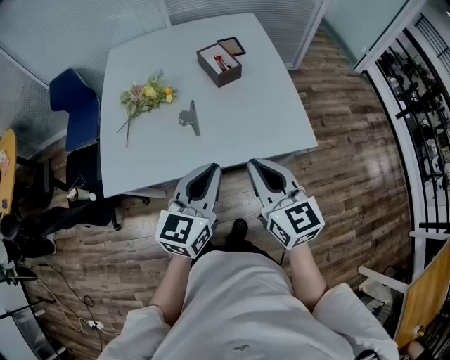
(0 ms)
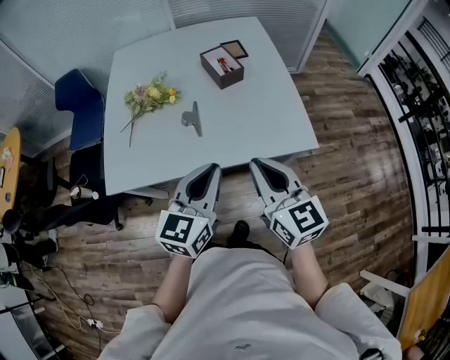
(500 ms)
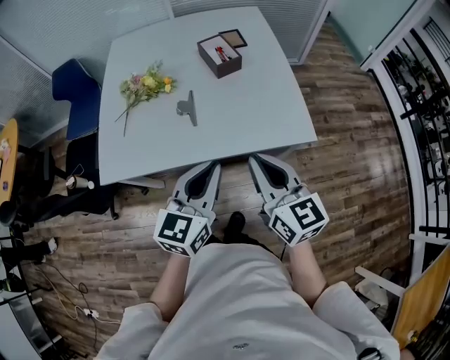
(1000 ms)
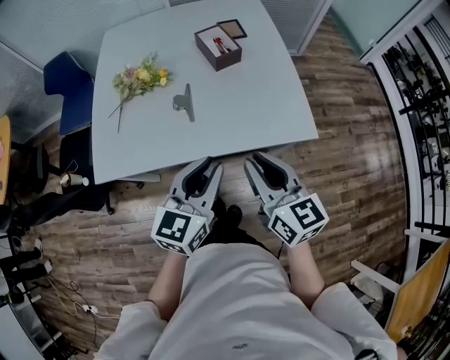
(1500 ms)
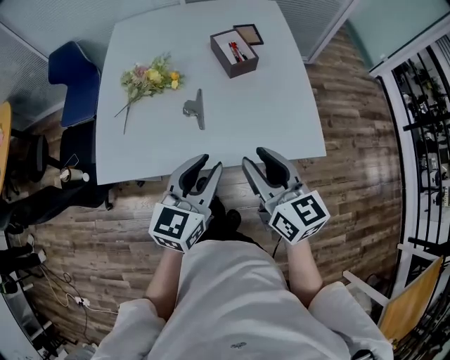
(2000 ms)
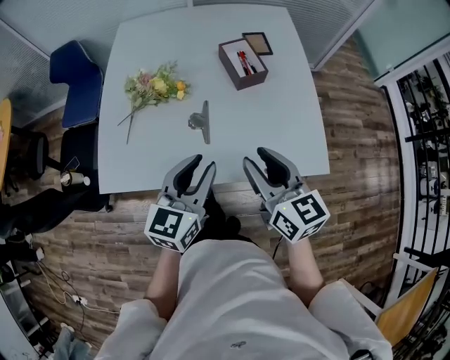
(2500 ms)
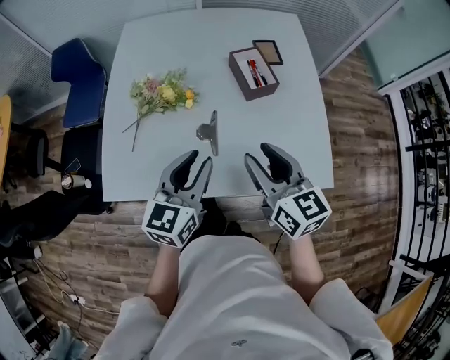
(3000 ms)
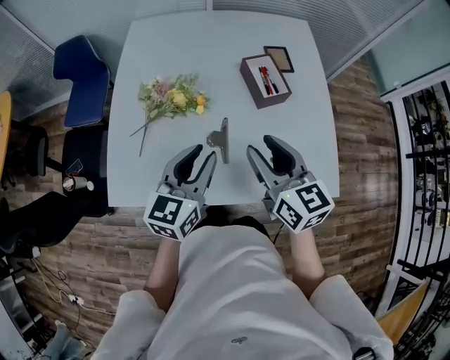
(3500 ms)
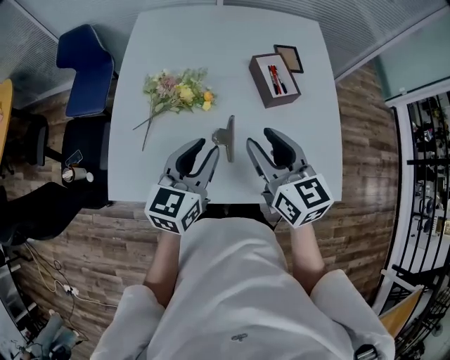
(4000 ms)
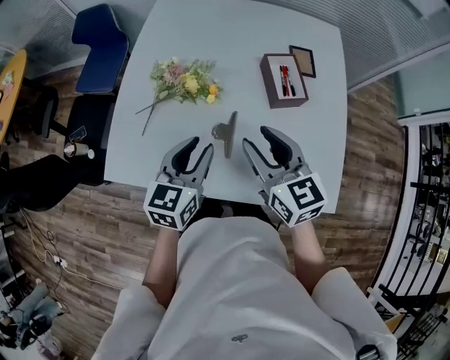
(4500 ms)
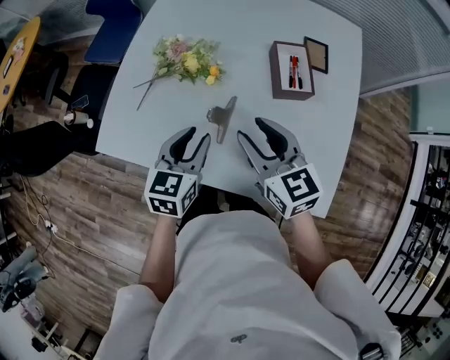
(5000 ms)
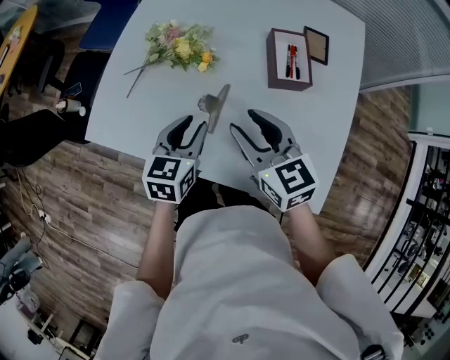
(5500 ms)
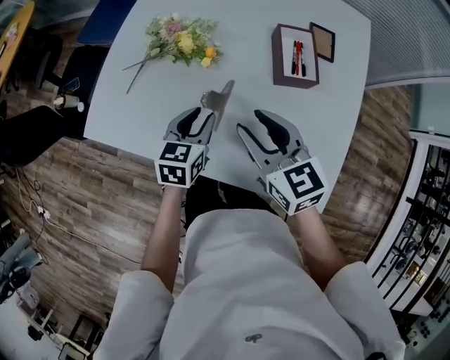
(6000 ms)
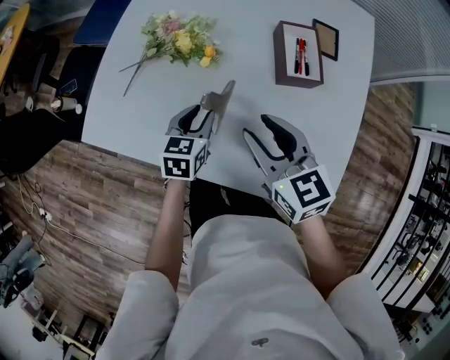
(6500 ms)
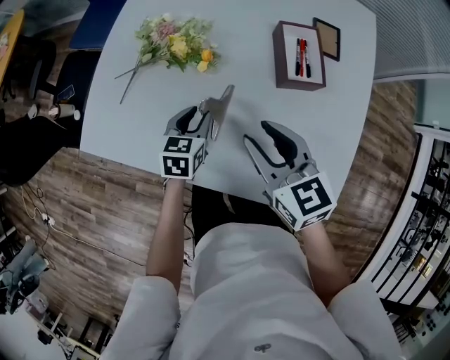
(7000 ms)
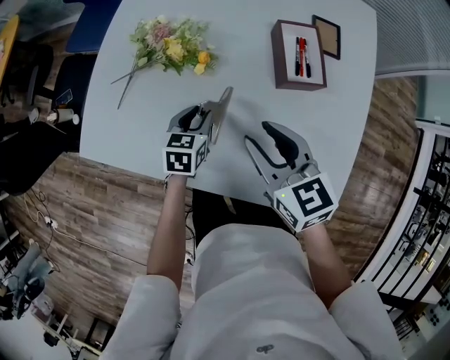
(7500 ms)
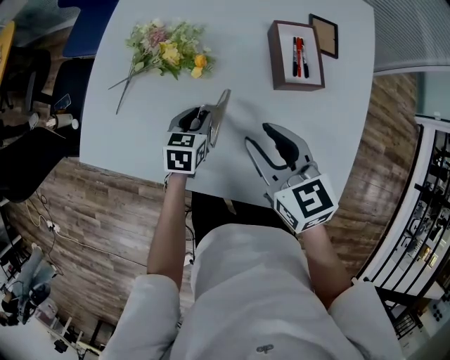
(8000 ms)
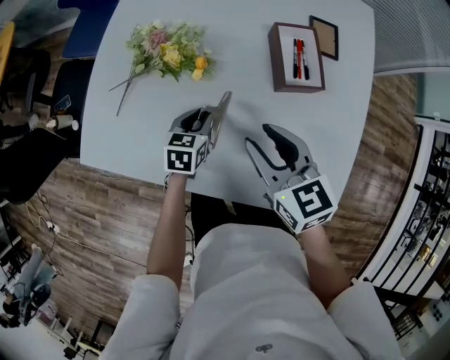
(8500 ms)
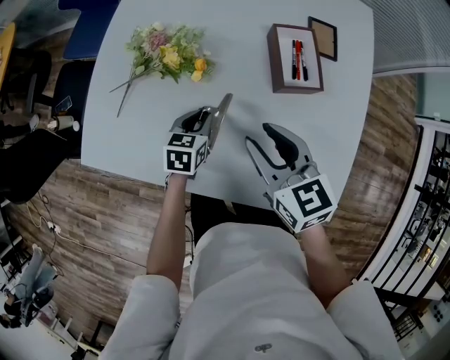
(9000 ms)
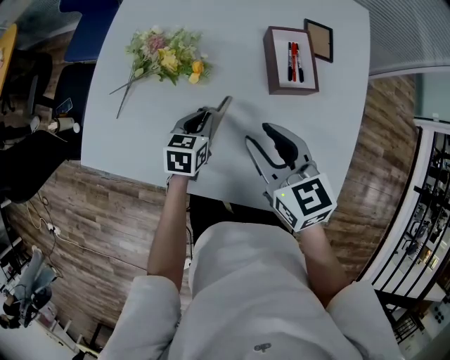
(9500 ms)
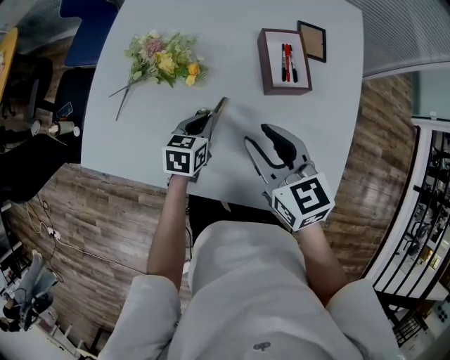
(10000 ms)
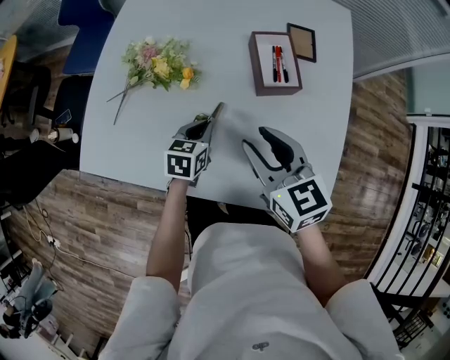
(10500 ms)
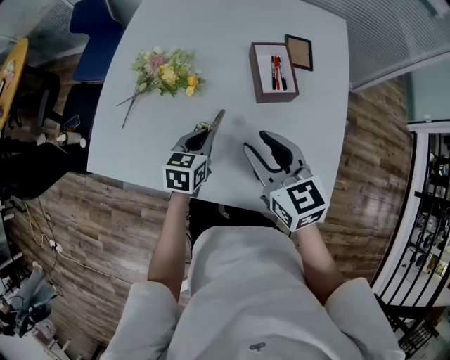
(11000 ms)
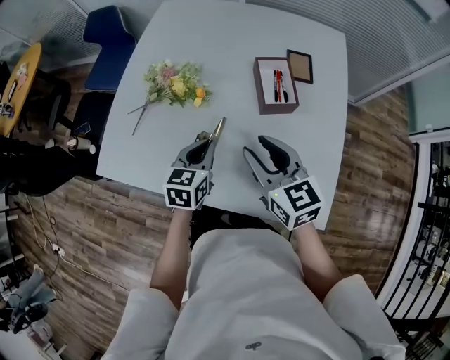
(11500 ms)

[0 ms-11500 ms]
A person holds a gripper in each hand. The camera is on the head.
0 ms to 2000 ms: The right gripper heads forward, covering approximately 5 cm, and opens its fingers. The left gripper ends up roughly 5 cm from where it was, and opens its fingers.
2000 ms to 4000 ms: The grippers both shift forward and to the left by some 20 cm.
4000 ms to 6000 ms: The left gripper moves downward, some 15 cm, and rotates roughly 30 degrees; the right gripper travels downward by some 5 cm, and turns by approximately 30 degrees.
6000 ms to 7500 ms: The left gripper goes some 10 cm downward and forward.
7500 ms to 9500 ms: There are only small adjustments of the grippers.
9500 ms to 11500 ms: The right gripper changes place by about 5 cm, while the left gripper travels upward and backward by about 15 cm.

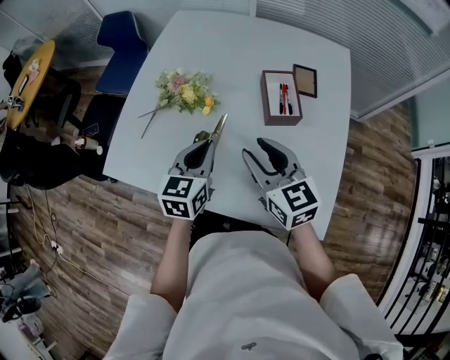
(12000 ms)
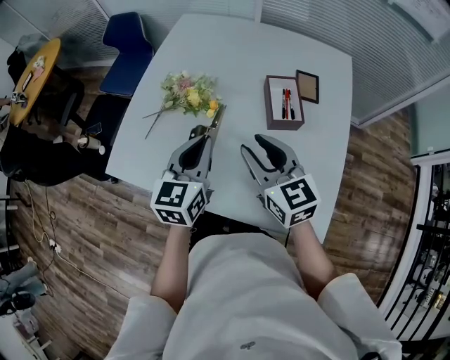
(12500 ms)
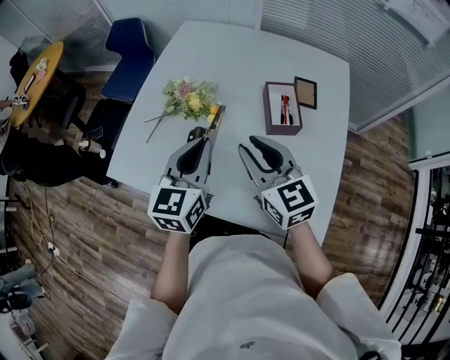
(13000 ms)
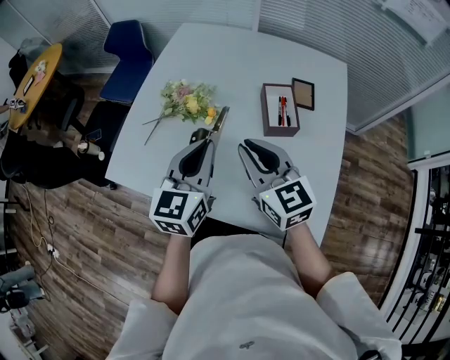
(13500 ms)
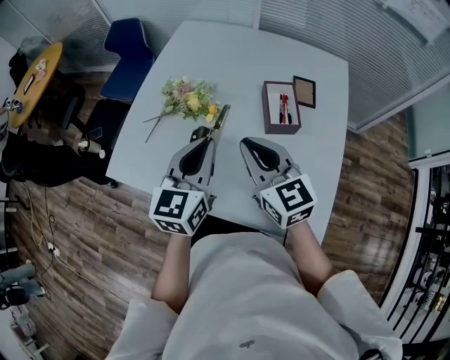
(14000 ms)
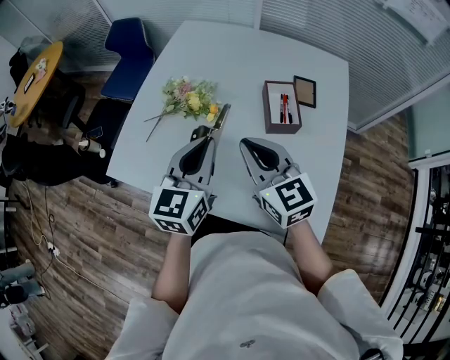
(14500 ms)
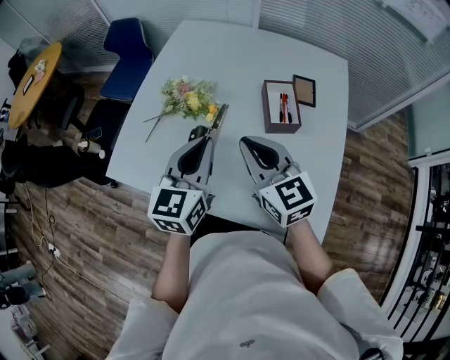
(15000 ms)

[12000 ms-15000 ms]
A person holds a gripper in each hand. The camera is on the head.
12000 ms to 13500 ms: The left gripper is displaced upward by approximately 10 cm, while the right gripper shifts by roughly 5 cm, and closes its fingers.
13500 ms to 15000 ms: The two grippers keep their place.

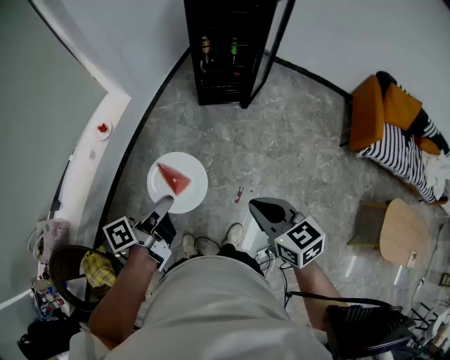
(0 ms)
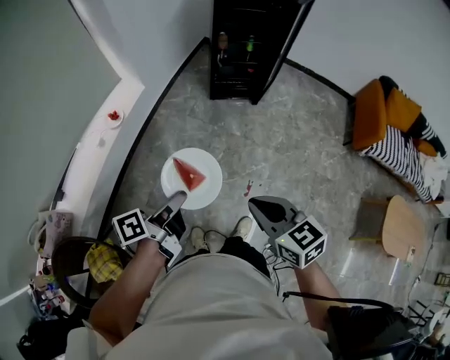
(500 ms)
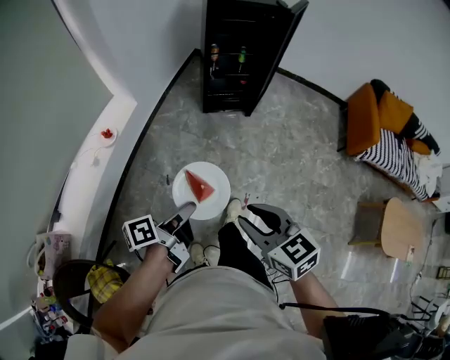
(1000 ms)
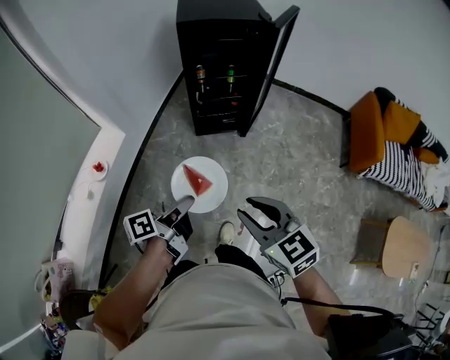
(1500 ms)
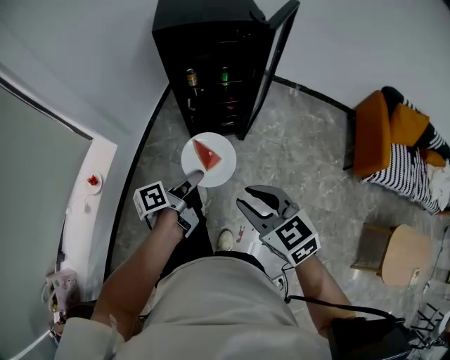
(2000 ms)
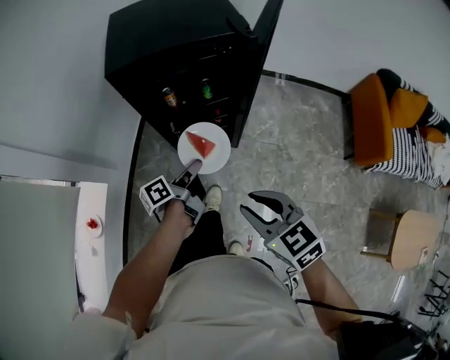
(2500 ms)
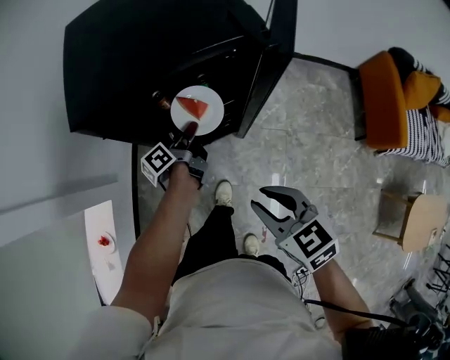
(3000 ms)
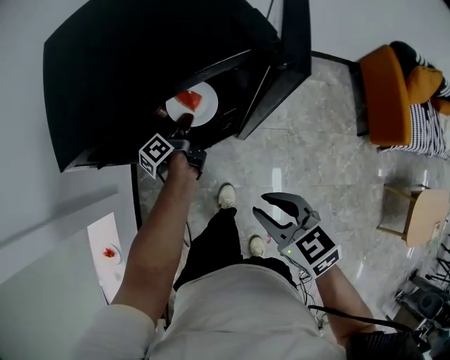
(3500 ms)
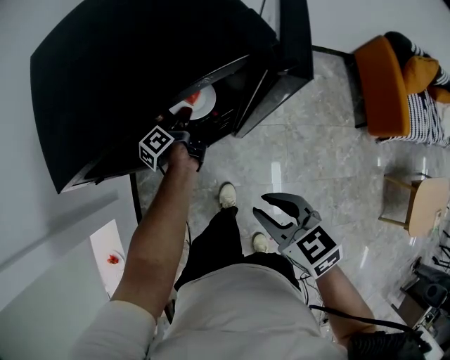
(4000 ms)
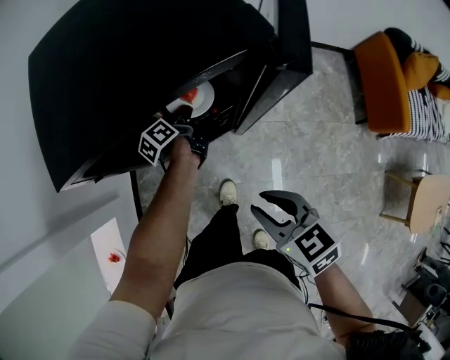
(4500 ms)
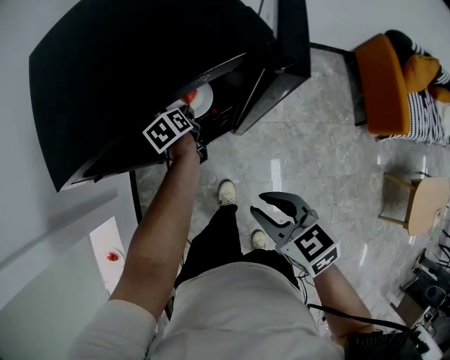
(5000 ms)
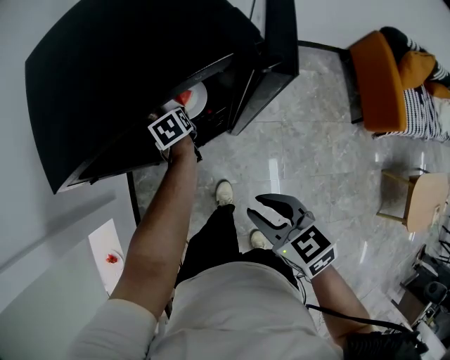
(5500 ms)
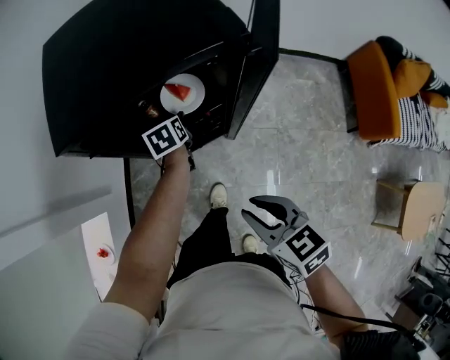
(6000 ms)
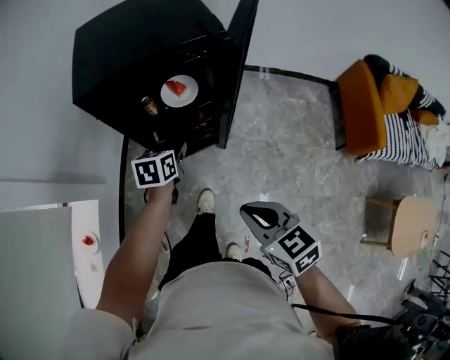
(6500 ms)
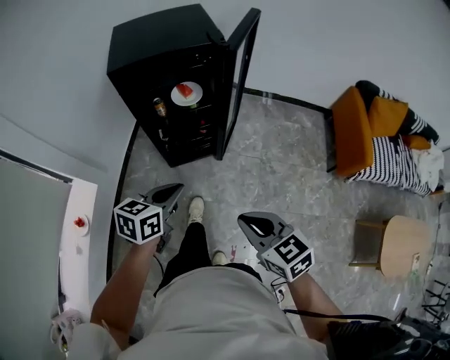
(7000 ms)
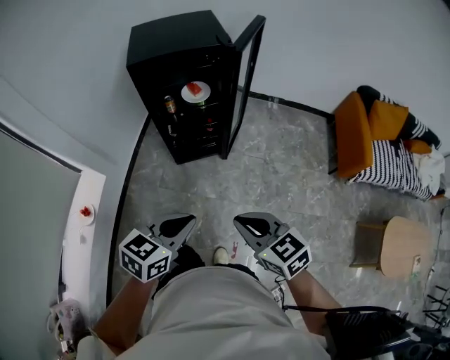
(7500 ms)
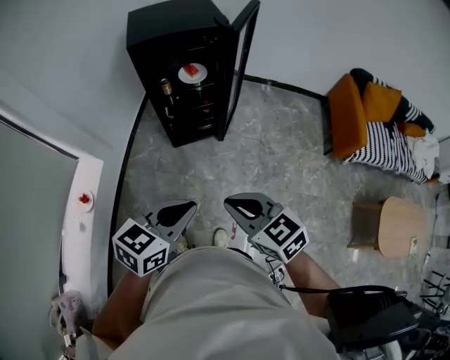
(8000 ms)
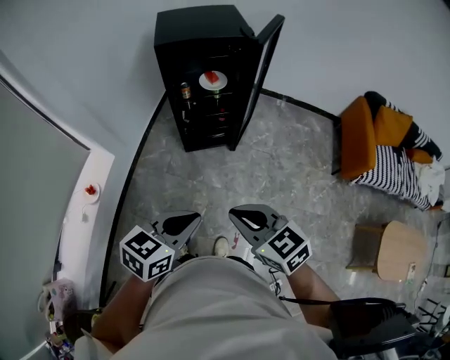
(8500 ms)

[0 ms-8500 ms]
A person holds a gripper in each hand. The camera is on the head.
0 ms to 2000 ms: The two grippers go approximately 35 cm forward. The right gripper opens.
2000 ms to 4000 ms: The left gripper is displaced forward by about 50 cm. The right gripper is displaced forward by about 30 cm, and rotates about 30 degrees.
4000 ms to 6500 ms: The right gripper goes about 15 cm backward, and closes up; the left gripper is displaced backward and upward by approximately 25 cm, twists roughly 60 degrees clockwise, seen from behind, and opens its fingers.
6500 ms to 8500 ms: The right gripper is displaced backward by some 25 cm. The left gripper travels backward and upward by approximately 50 cm, turns by about 30 degrees, and closes.

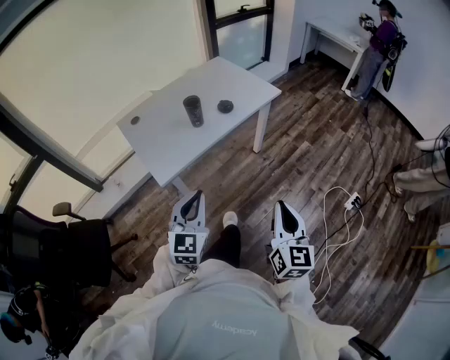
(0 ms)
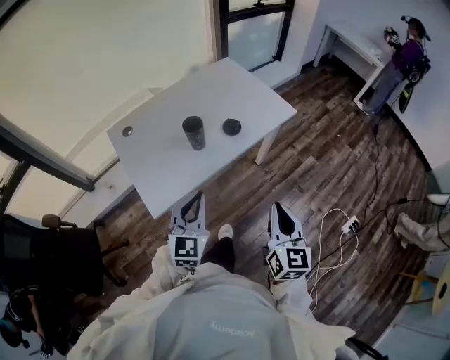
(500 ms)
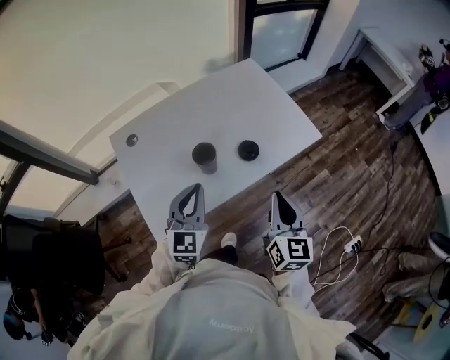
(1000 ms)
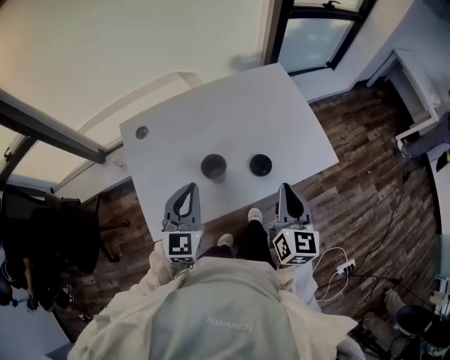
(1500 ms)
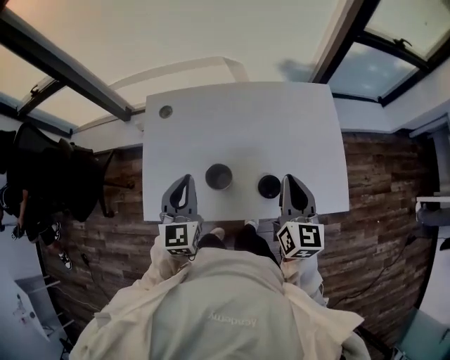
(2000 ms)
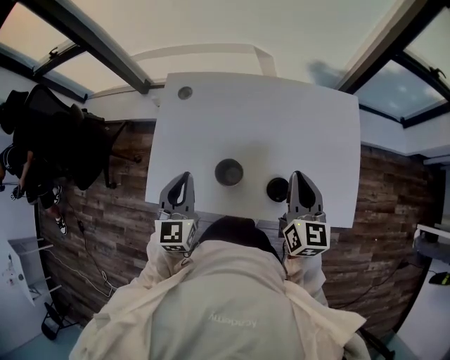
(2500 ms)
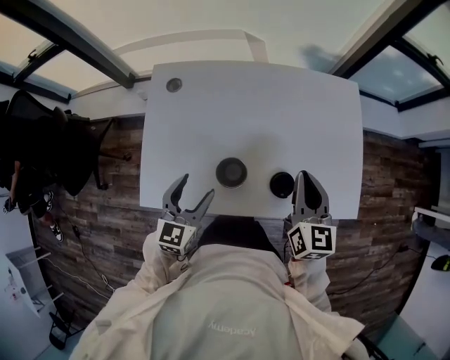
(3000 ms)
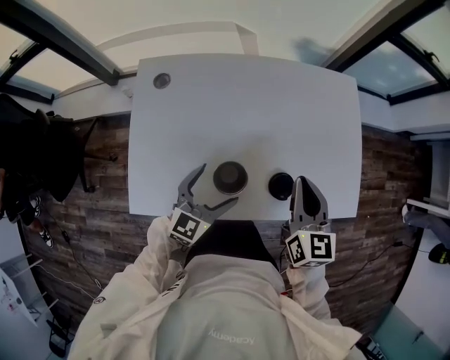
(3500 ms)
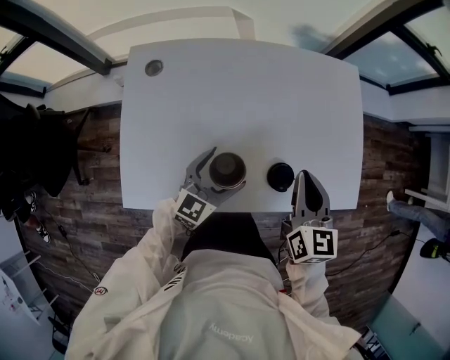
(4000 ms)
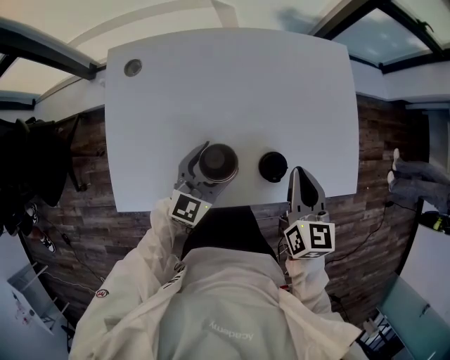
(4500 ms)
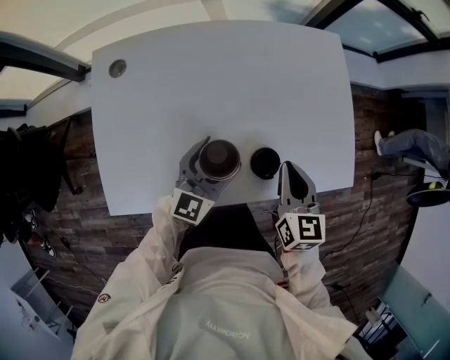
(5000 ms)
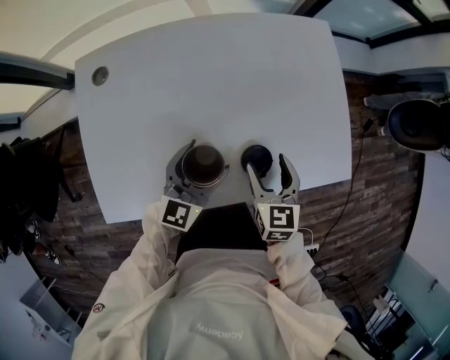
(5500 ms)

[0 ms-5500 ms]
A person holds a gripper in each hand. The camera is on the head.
0 ms to 2000 ms: The pair of grippers is taken roughly 60 cm. The left gripper swivels approximately 50 degrees. The right gripper turns by about 40 degrees.
2000 ms to 3500 ms: The right gripper heads downward and to the left, covering some 10 cm; the left gripper moves downward, about 15 cm, swivels approximately 30 degrees, and opens its fingers.
3500 ms to 5500 ms: The left gripper heads to the right and forward, covering approximately 10 cm, while the right gripper heads downward, covering approximately 15 cm, and opens its fingers.
